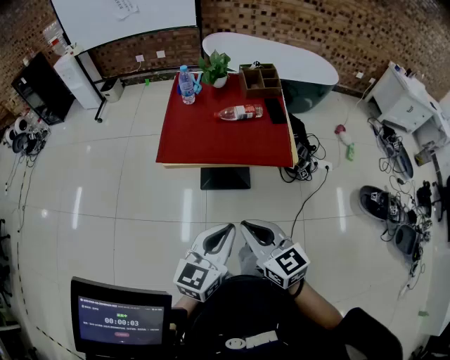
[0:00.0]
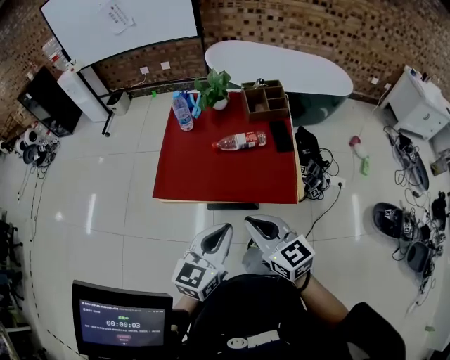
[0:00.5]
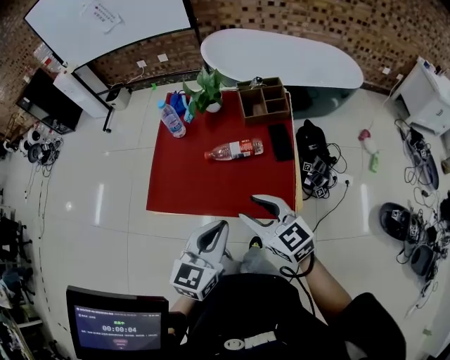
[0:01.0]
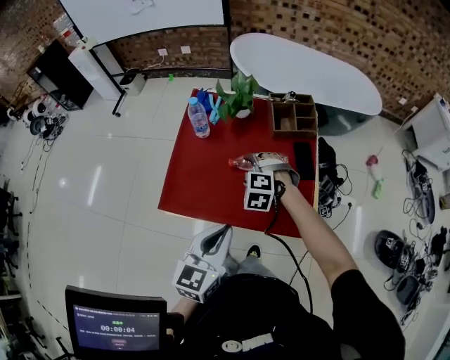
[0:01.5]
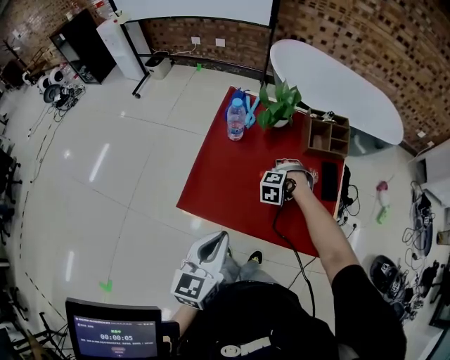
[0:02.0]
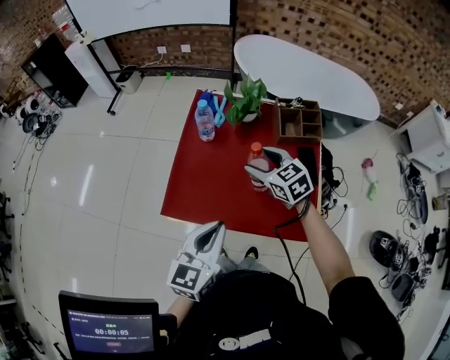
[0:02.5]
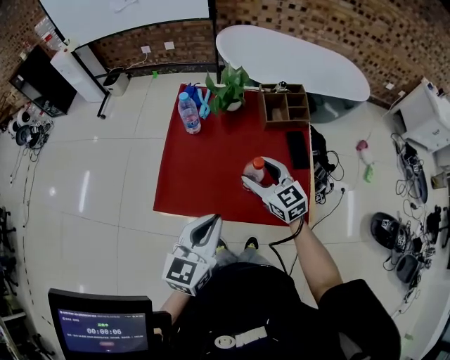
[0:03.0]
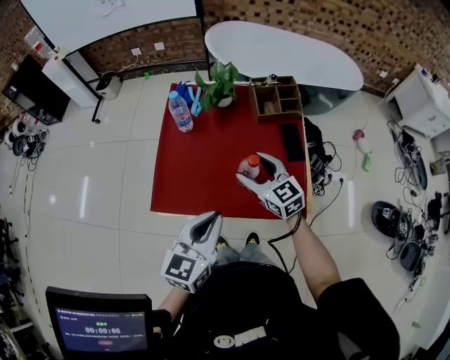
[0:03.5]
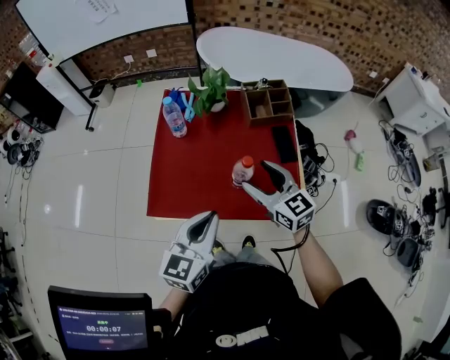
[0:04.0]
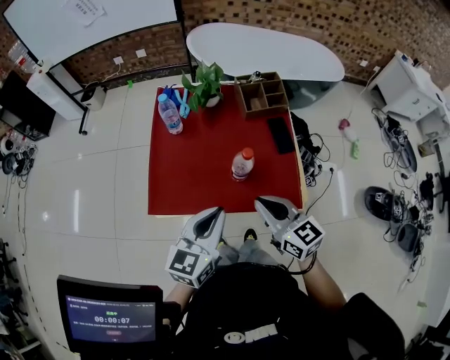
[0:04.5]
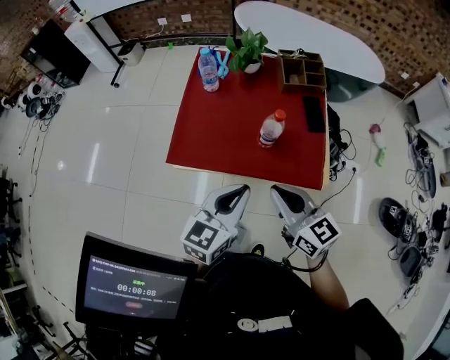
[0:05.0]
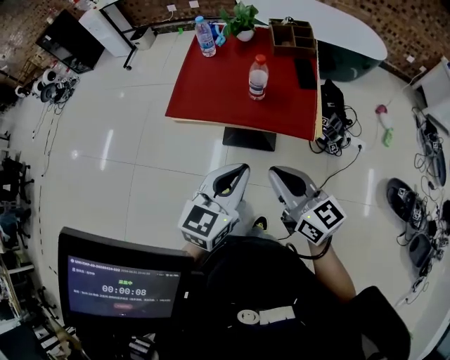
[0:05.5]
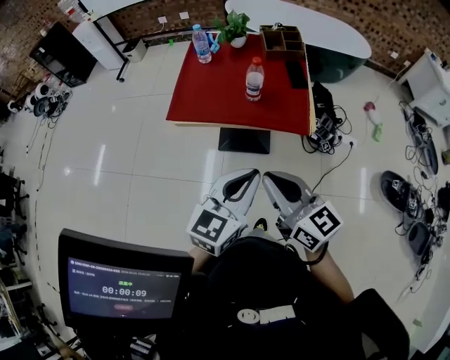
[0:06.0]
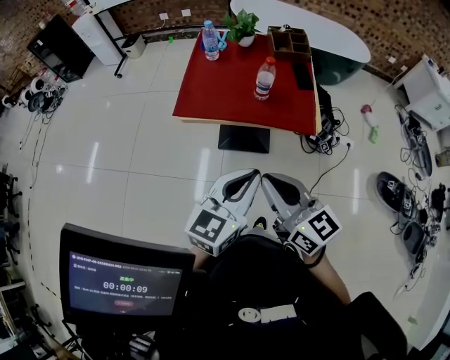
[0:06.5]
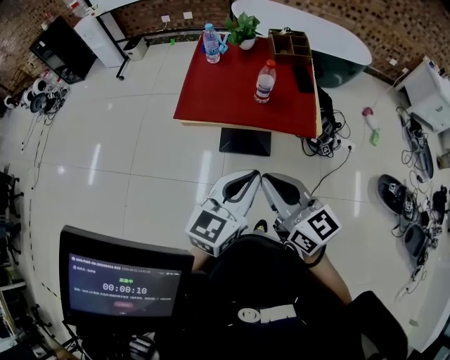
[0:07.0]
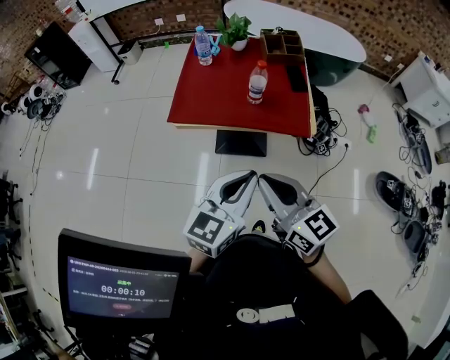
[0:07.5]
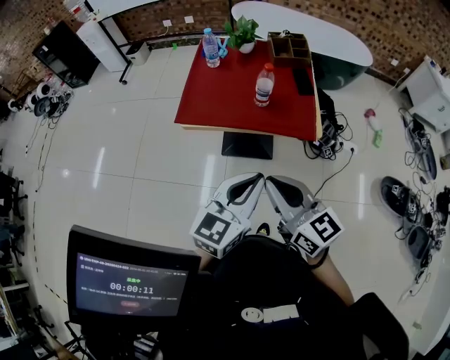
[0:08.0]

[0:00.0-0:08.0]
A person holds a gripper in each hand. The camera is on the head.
0:00.0 to 0:02.0: The left gripper travels forward by approximately 30 cm, and turns by about 20 degrees; the right gripper moves forward and downward, approximately 60 cm, tilts its fingers some 60 degrees downward, and opens its fingers.
0:02.0 to 0:04.0: The left gripper ends up some 10 cm from where it was. Meanwhile the right gripper is displaced upward by about 20 cm, and tips its fingers upward by approximately 60 degrees.
0:04.0 to 0:06.0: The grippers both shift backward by about 30 cm. The right gripper closes its fingers.
0:06.0 to 0:08.0: The grippers make only small movements.

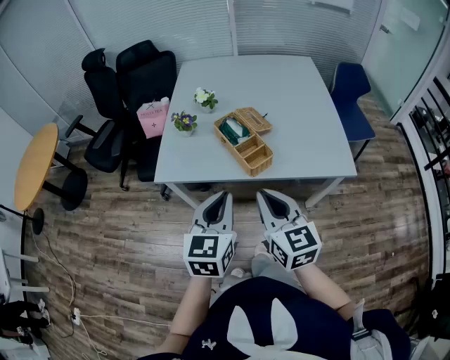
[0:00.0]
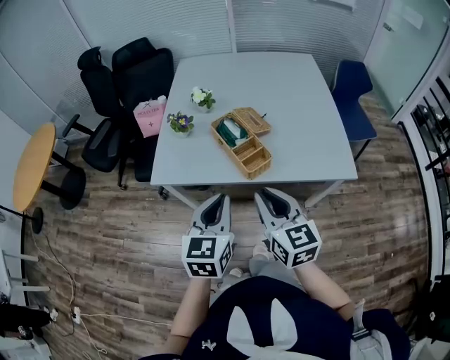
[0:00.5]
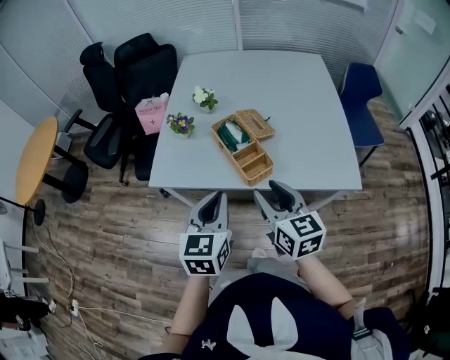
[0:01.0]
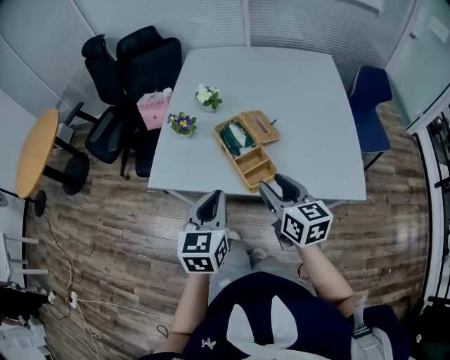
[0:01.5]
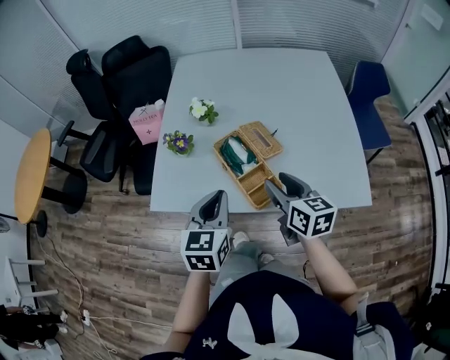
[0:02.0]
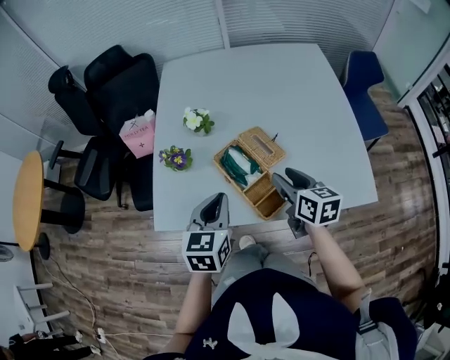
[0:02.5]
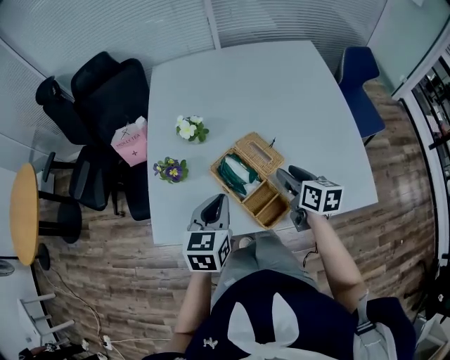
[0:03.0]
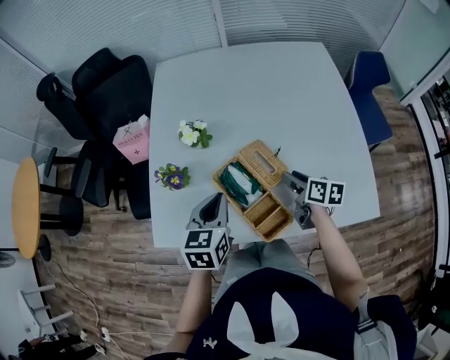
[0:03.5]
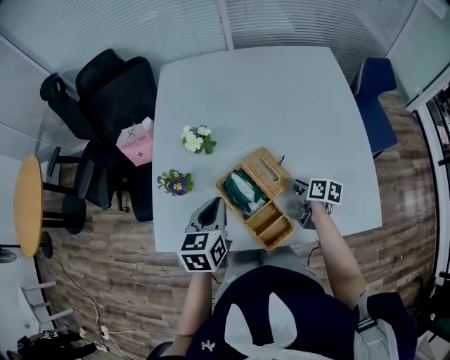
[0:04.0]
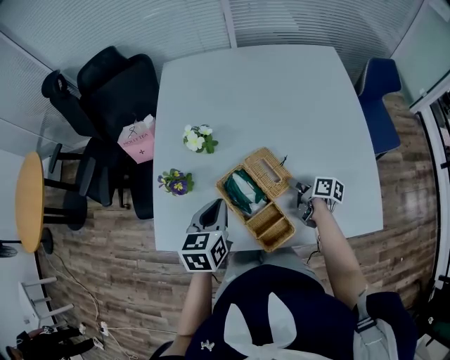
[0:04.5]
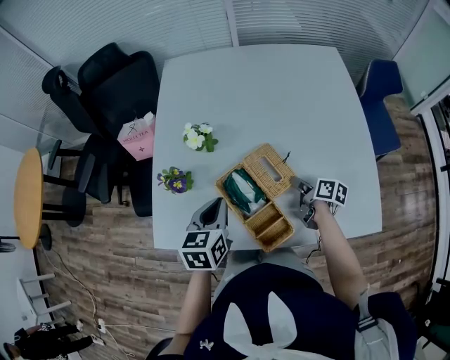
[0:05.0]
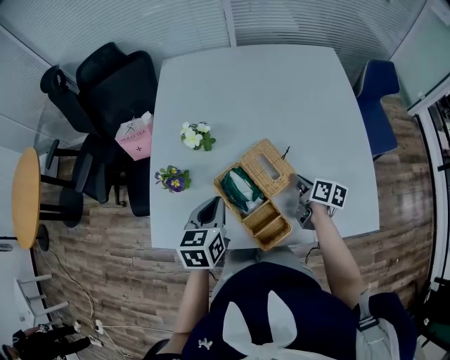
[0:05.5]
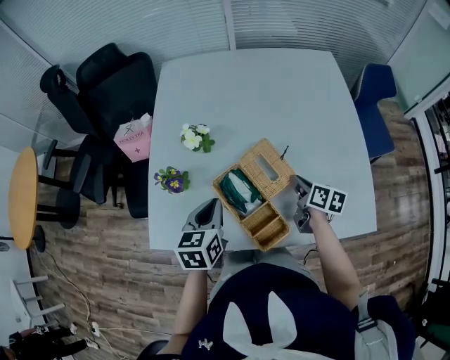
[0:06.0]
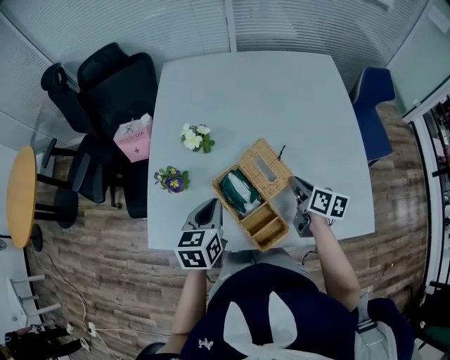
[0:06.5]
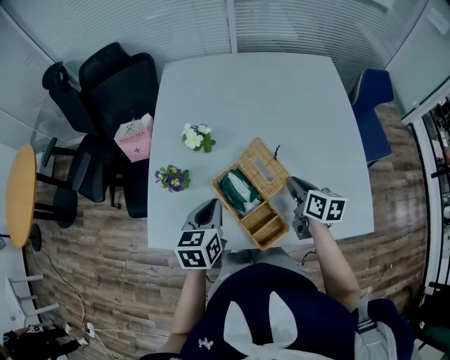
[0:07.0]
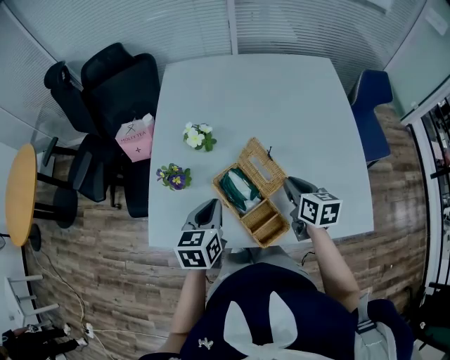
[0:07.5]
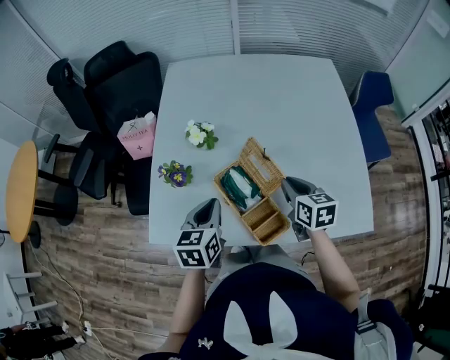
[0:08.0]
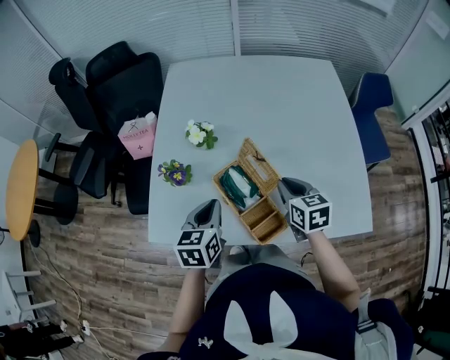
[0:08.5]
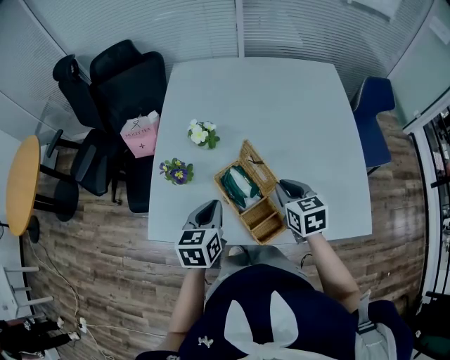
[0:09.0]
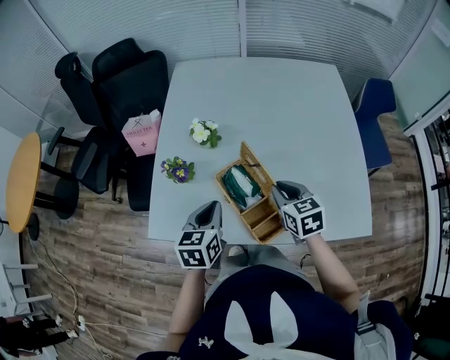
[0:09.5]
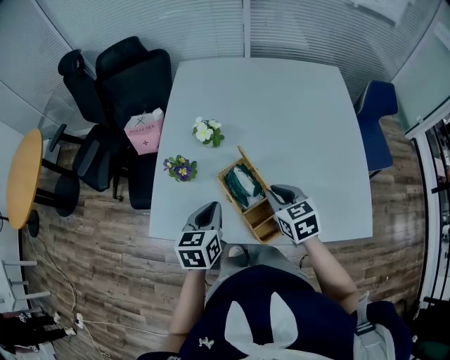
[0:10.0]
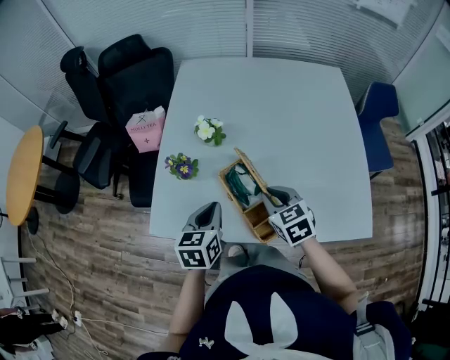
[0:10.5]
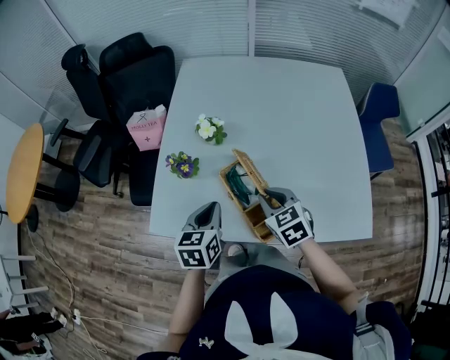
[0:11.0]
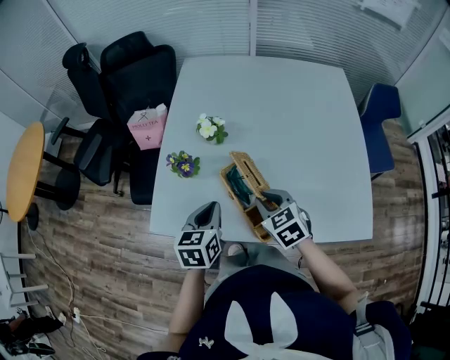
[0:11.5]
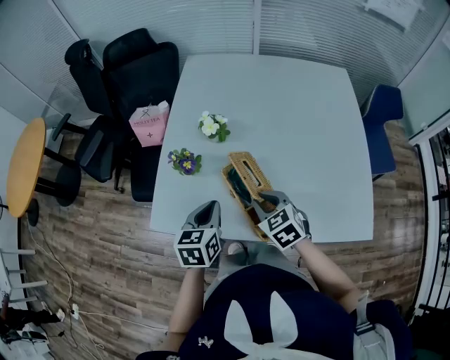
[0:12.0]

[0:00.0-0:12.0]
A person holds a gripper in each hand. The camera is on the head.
0:00.0 to 0:02.0: Both grippers travel together forward, approximately 20 cm. The right gripper changes its angle by approximately 20 degrees, and opens its fingers.
0:02.0 to 0:04.0: The right gripper moves downward, forward and to the right, some 25 cm, and swivels roughly 40 degrees, while the left gripper shifts approximately 15 cm forward.
0:04.0 to 0:06.0: The right gripper is displaced upward by roughly 5 cm, and closes its fingers.
0:06.0 to 0:08.0: The right gripper heads upward and to the left, covering roughly 10 cm, and rotates some 30 degrees.
0:08.0 to 0:10.0: The right gripper travels to the left by about 5 cm, and rotates about 20 degrees.
0:10.0 to 0:12.0: The right gripper moves to the left, roughly 5 cm.

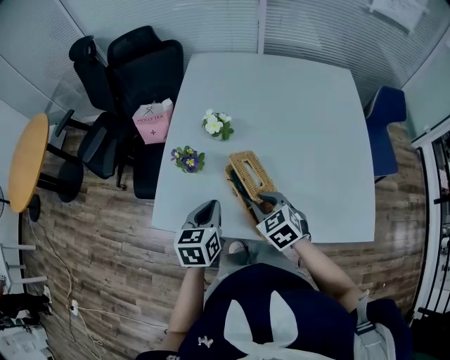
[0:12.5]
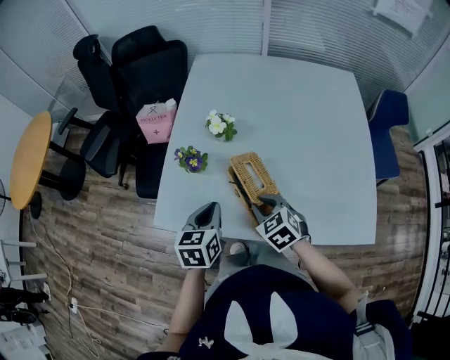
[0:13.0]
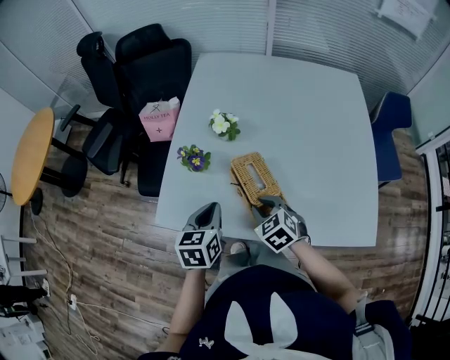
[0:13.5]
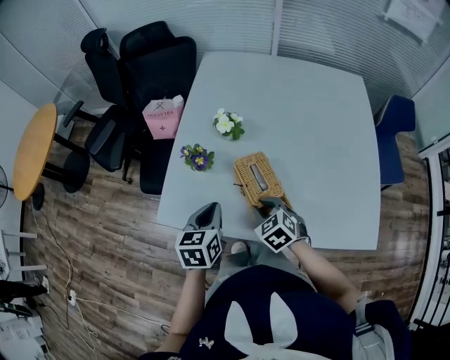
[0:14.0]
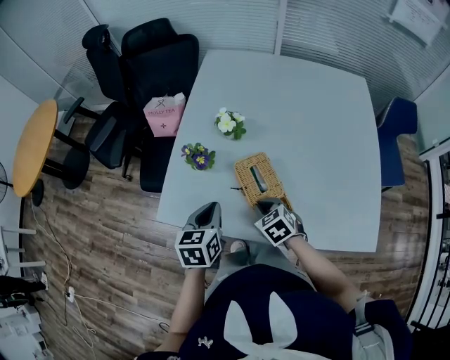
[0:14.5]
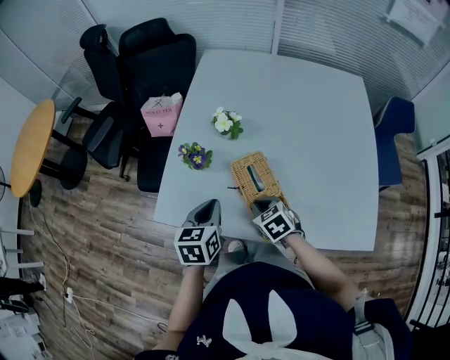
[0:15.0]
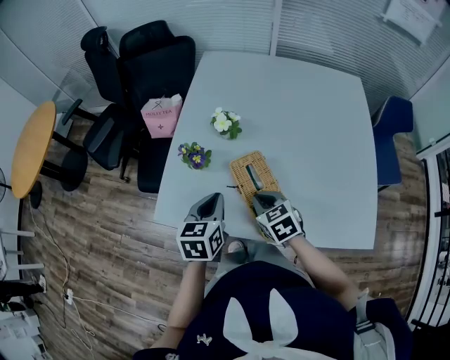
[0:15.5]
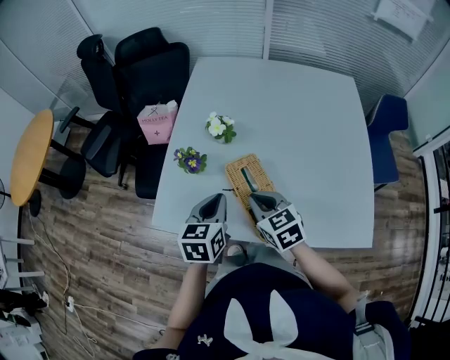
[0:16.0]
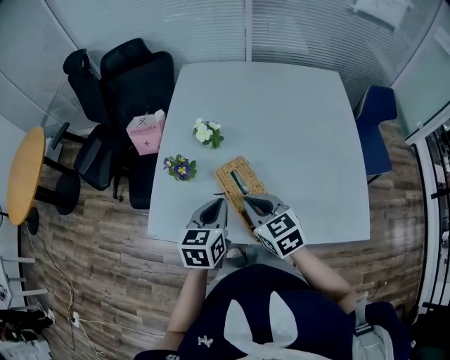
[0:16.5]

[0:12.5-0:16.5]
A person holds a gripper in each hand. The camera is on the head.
0:12.5 to 0:14.5: The right gripper shifts approximately 5 cm downward.
0:14.5 to 0:16.5: The left gripper shifts roughly 10 cm to the right; the right gripper shifts approximately 15 cm upward, and rotates about 20 degrees.

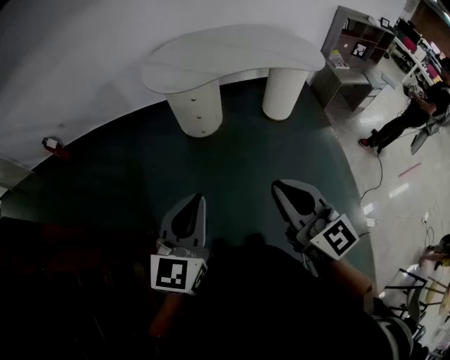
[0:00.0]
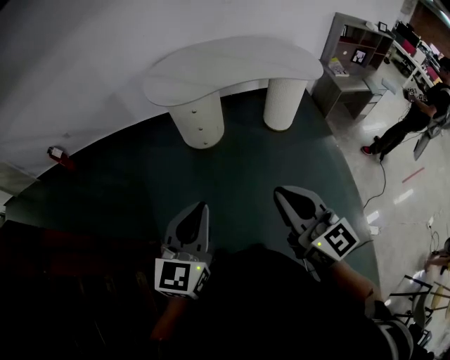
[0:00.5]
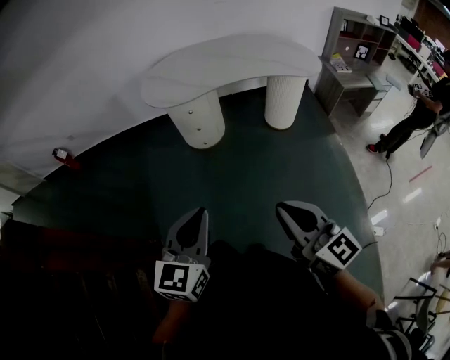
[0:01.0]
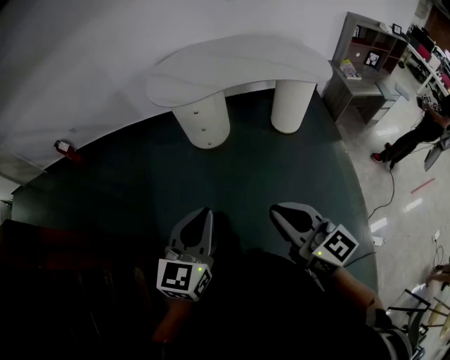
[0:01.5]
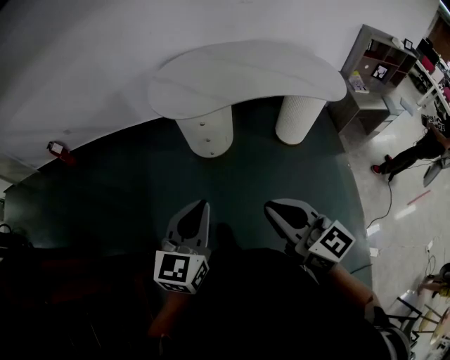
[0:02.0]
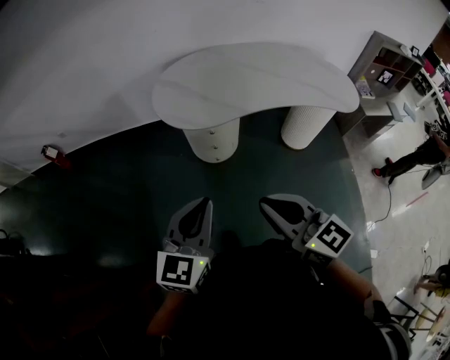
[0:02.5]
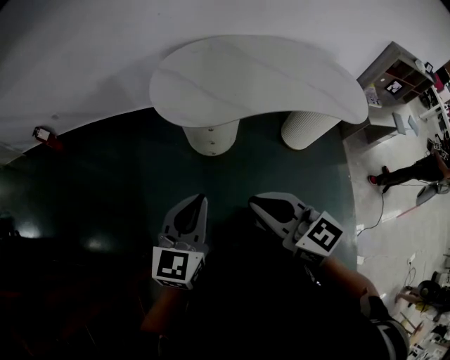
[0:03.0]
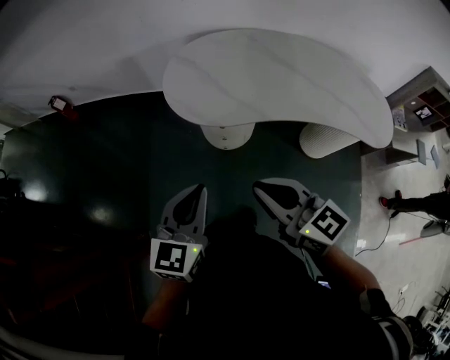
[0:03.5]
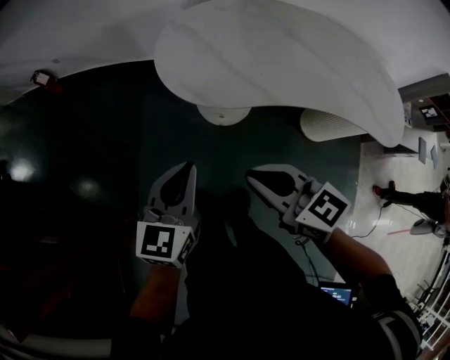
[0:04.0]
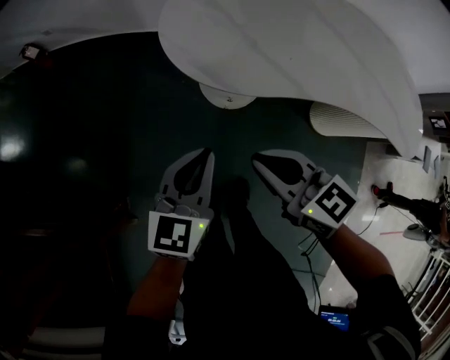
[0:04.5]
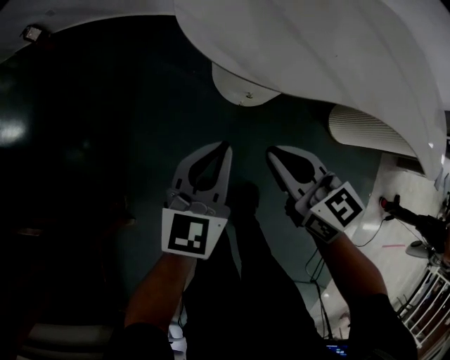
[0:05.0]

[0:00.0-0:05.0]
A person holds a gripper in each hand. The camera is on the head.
0:00.0 to 0:02.5: The grippers both shift forward by some 25 cm.
0:02.5 to 0:05.0: The grippers both shift downward and forward by about 40 cm. The right gripper rotates some 20 degrees.
